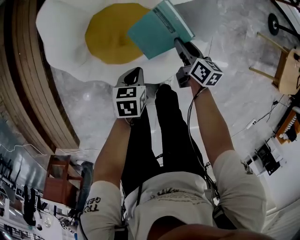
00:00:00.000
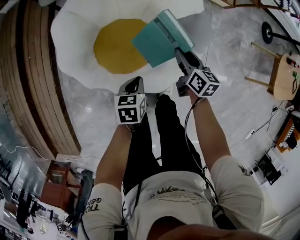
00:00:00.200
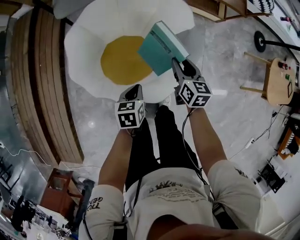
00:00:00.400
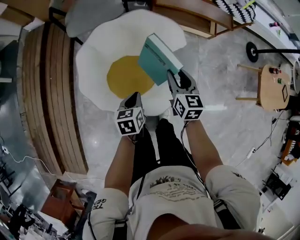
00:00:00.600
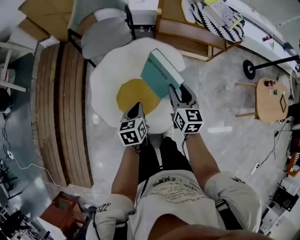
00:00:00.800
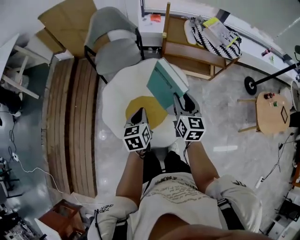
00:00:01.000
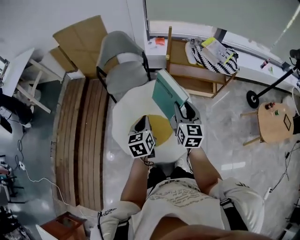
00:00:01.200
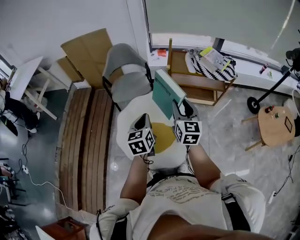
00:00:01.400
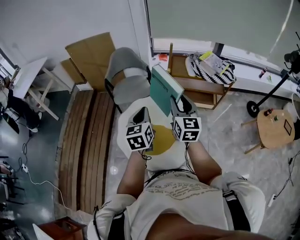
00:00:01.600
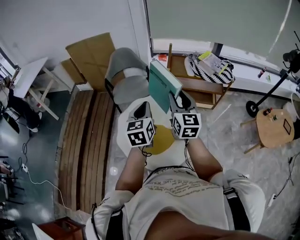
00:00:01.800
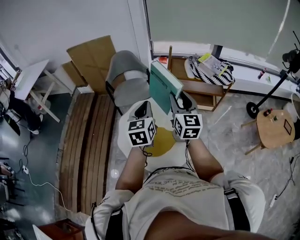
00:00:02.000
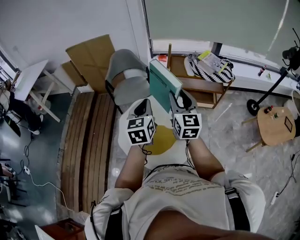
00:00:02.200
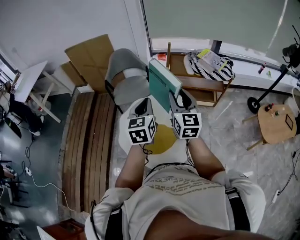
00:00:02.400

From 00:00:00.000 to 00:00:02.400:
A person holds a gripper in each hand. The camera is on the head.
From 00:00:00.000 to 00:00:01.200: Both grippers travel together upward, about 50 cm. The left gripper swivels about 40 degrees; the right gripper turns by about 40 degrees.
From 00:00:01.200 to 00:00:02.400: The two grippers go some 15 cm upward. The left gripper rotates about 20 degrees.

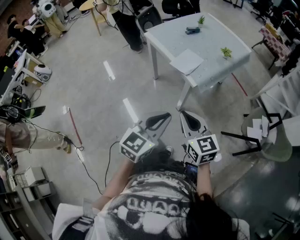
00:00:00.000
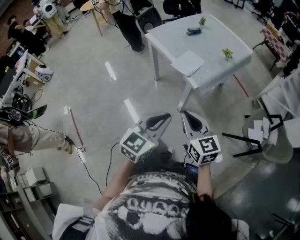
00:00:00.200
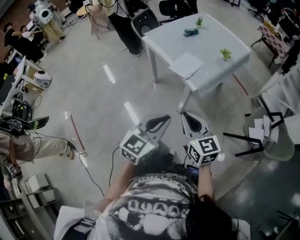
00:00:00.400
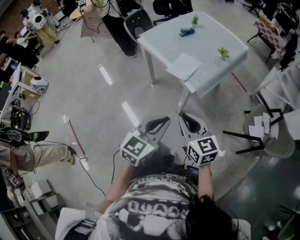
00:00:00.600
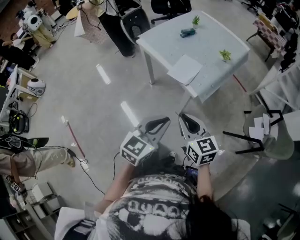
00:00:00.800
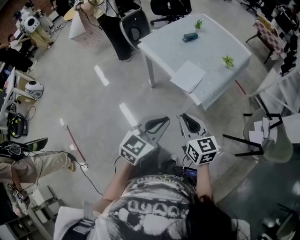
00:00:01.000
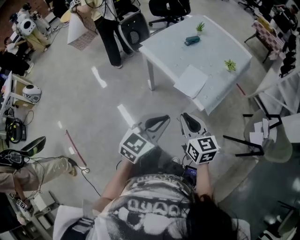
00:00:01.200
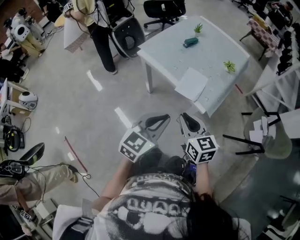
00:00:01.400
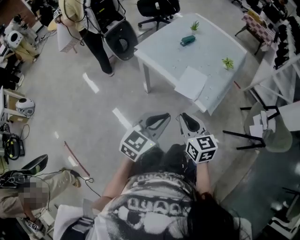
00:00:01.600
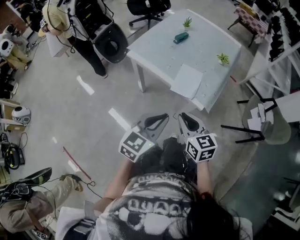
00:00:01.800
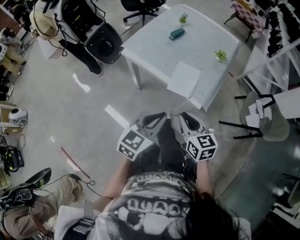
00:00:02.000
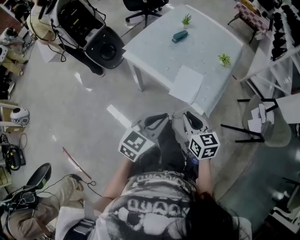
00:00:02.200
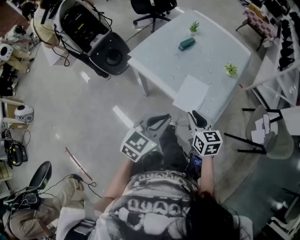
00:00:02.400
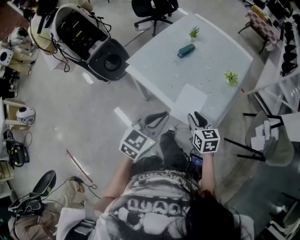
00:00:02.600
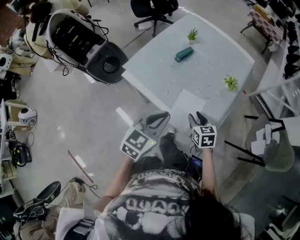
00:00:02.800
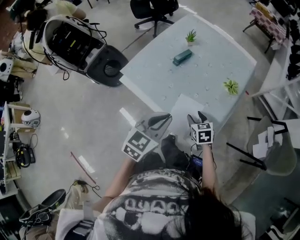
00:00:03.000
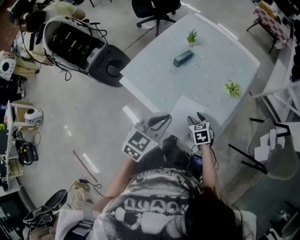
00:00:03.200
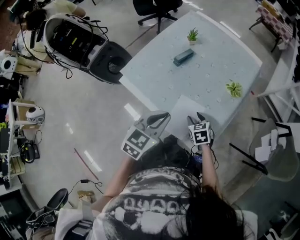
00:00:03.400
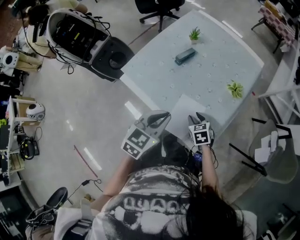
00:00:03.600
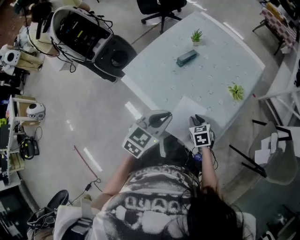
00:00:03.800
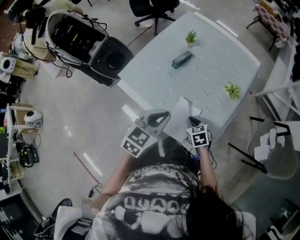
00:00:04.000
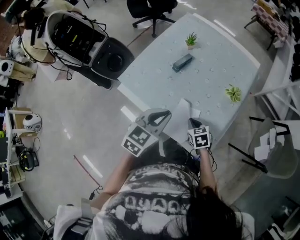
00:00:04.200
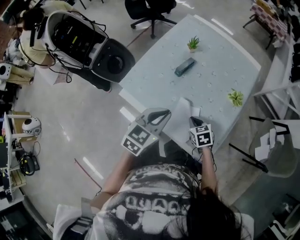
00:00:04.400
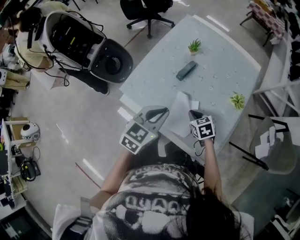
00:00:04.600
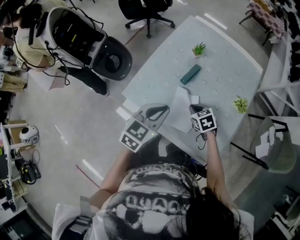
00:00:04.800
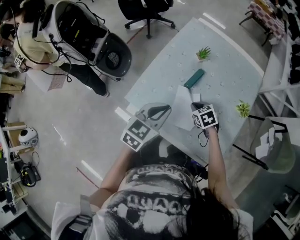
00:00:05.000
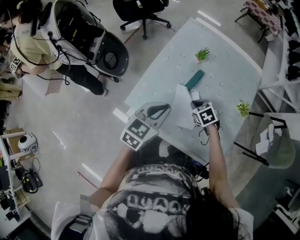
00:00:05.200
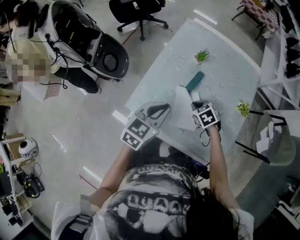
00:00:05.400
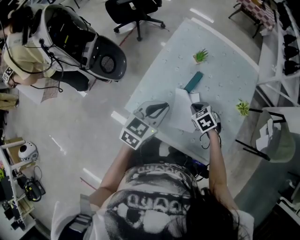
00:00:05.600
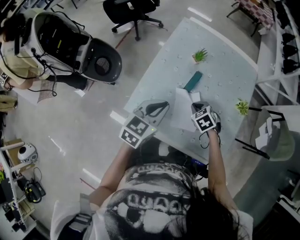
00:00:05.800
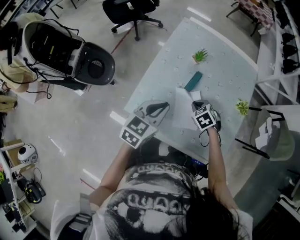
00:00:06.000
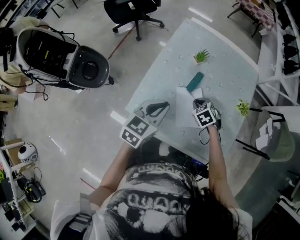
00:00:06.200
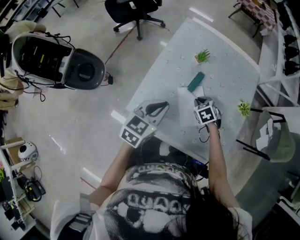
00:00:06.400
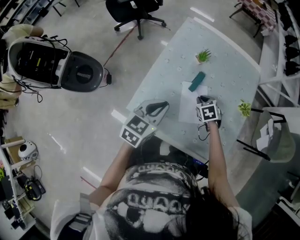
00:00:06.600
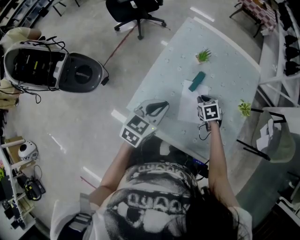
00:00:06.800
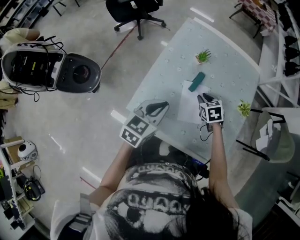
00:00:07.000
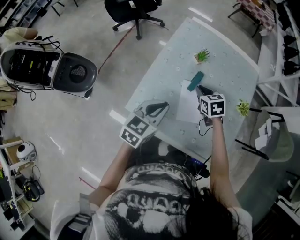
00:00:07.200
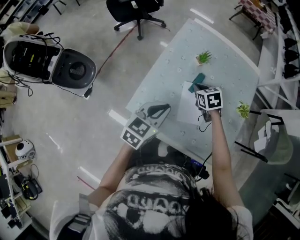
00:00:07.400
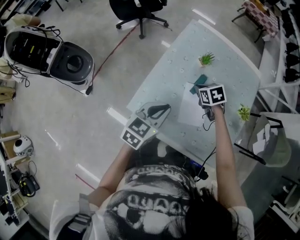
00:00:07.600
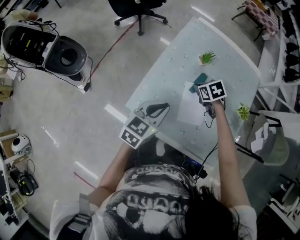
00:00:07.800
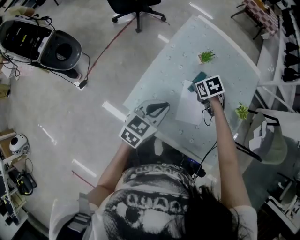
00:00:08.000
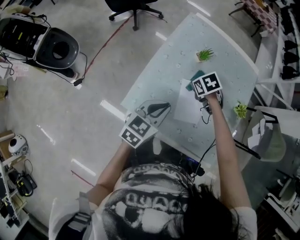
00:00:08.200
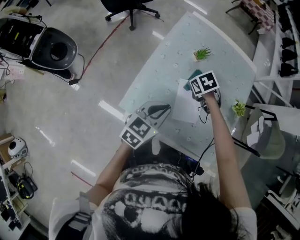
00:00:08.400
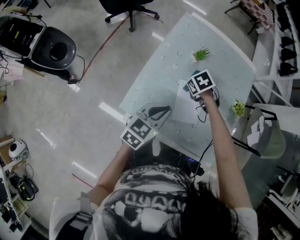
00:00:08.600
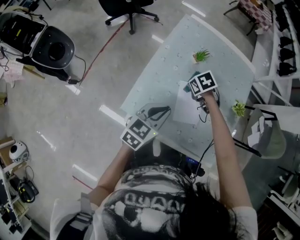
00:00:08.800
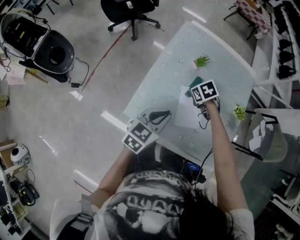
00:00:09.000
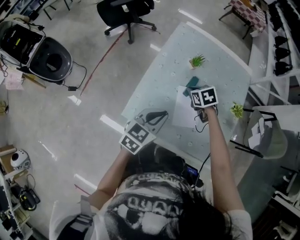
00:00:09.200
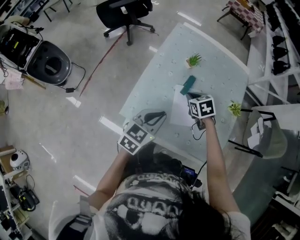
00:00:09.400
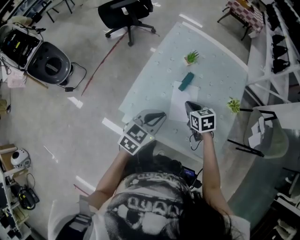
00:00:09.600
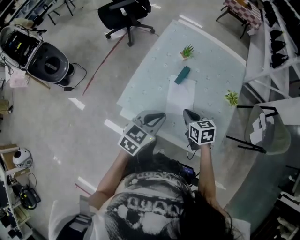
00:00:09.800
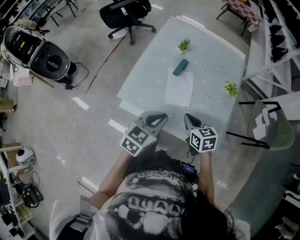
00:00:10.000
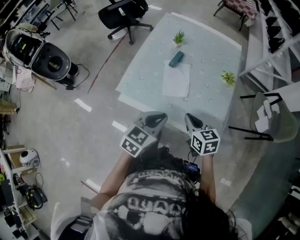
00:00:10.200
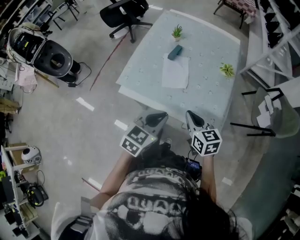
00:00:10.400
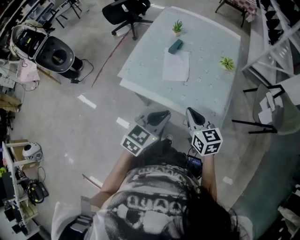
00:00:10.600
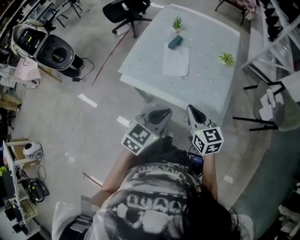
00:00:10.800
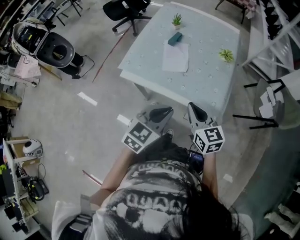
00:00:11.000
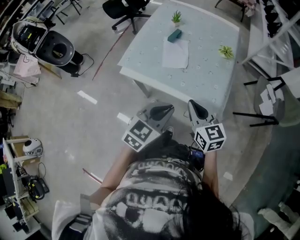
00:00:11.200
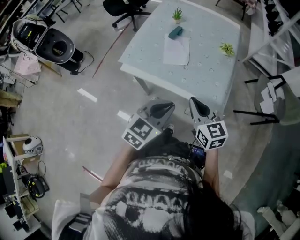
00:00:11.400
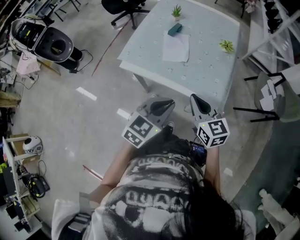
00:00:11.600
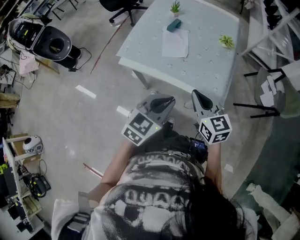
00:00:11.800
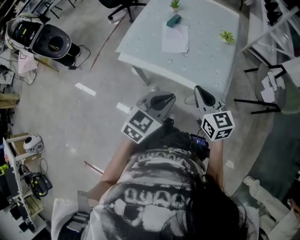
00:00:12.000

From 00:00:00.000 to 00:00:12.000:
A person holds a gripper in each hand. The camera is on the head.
From 00:00:00.000 to 00:00:01.600: Both grippers travel together forward and to the left, about 25 cm.
From 00:00:01.600 to 00:00:03.000: The left gripper is displaced forward by about 25 cm; the right gripper heads forward and downward, covering about 35 cm, turns by about 30 degrees, and opens.
From 00:00:03.000 to 00:00:04.400: The right gripper shifts by roughly 5 cm, and closes up. The left gripper shifts some 10 cm forward.
From 00:00:04.400 to 00:00:06.000: Both grippers move forward and to the left, roughly 20 cm.
From 00:00:06.000 to 00:00:07.600: The right gripper shifts roughly 10 cm forward.
From 00:00:07.600 to 00:00:09.000: There are only small adjustments of the grippers.
From 00:00:09.000 to 00:00:10.400: The left gripper is displaced backward and to the right by about 25 cm. Meanwhile the right gripper moves backward, approximately 35 cm, and points its fingers roughly 40 degrees further upward.
From 00:00:10.400 to 00:00:12.000: Both grippers move backward, approximately 10 cm.

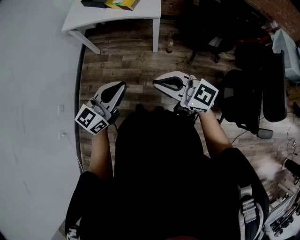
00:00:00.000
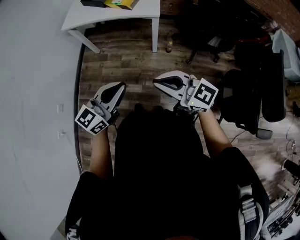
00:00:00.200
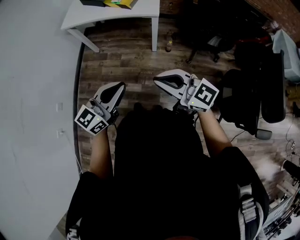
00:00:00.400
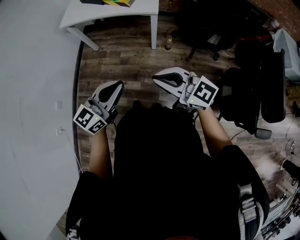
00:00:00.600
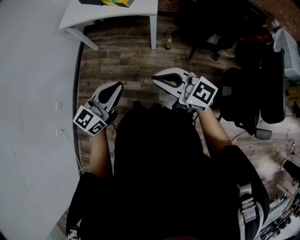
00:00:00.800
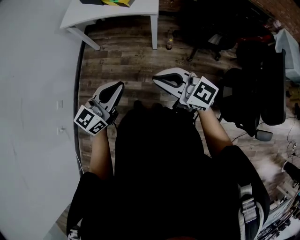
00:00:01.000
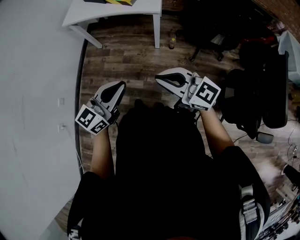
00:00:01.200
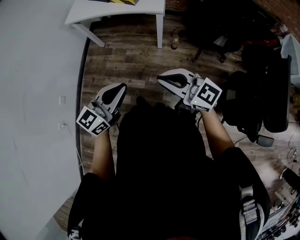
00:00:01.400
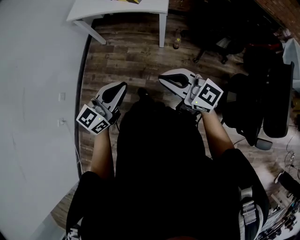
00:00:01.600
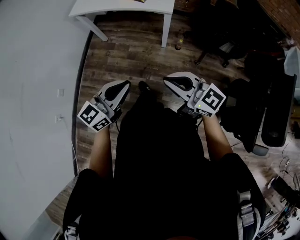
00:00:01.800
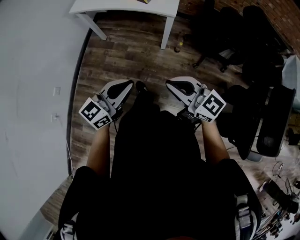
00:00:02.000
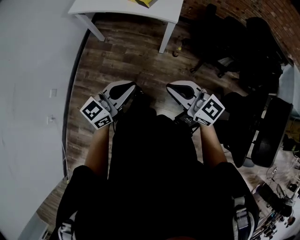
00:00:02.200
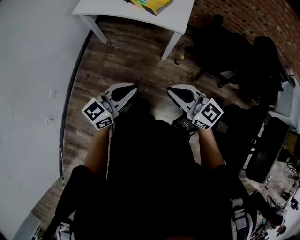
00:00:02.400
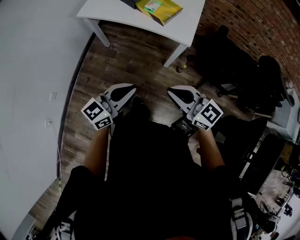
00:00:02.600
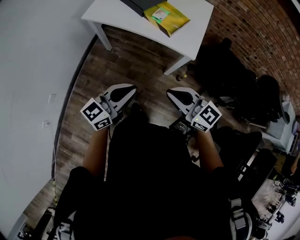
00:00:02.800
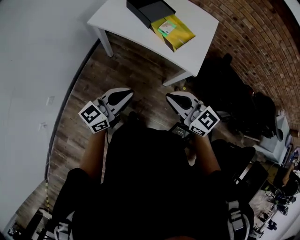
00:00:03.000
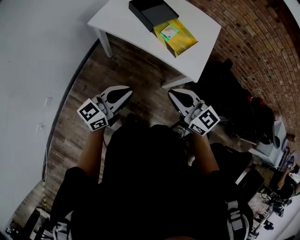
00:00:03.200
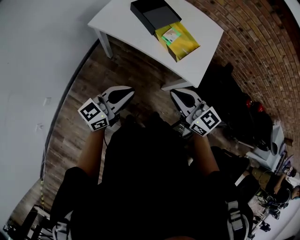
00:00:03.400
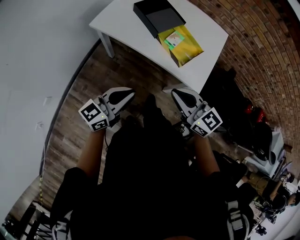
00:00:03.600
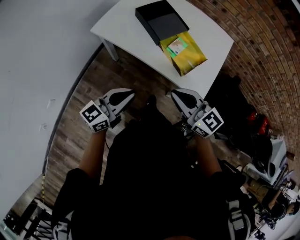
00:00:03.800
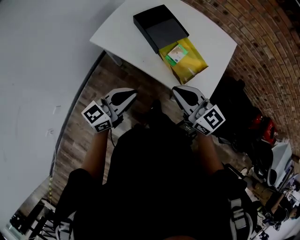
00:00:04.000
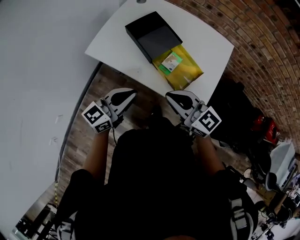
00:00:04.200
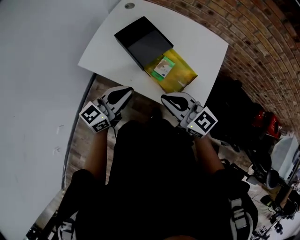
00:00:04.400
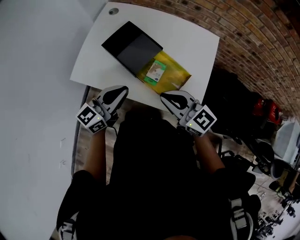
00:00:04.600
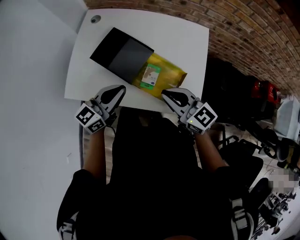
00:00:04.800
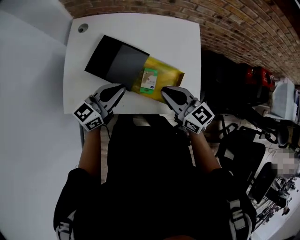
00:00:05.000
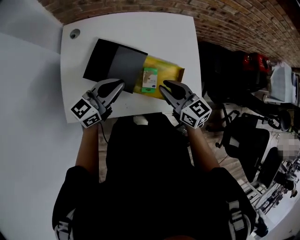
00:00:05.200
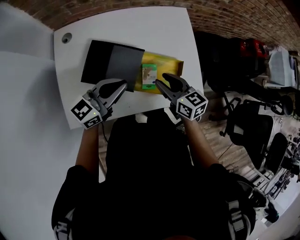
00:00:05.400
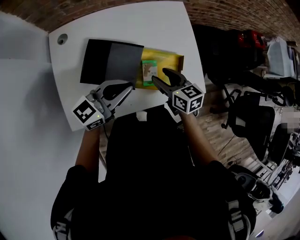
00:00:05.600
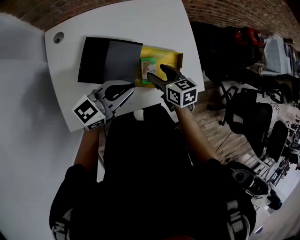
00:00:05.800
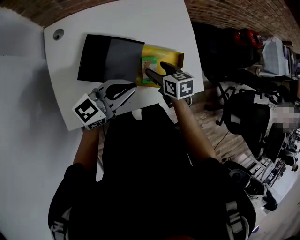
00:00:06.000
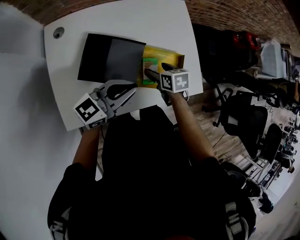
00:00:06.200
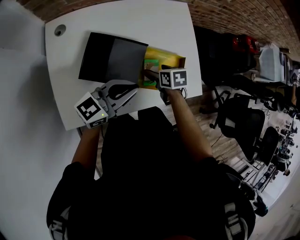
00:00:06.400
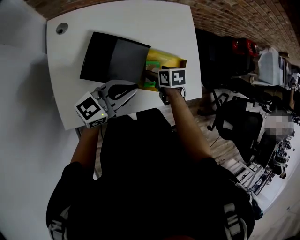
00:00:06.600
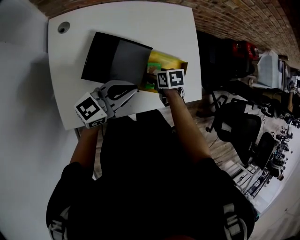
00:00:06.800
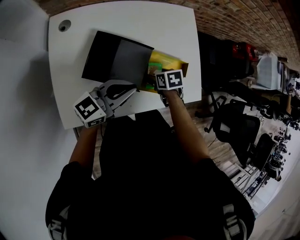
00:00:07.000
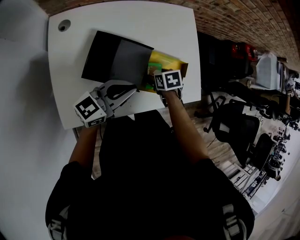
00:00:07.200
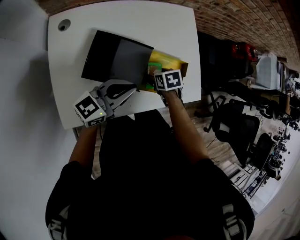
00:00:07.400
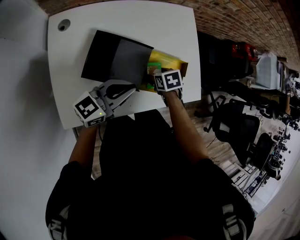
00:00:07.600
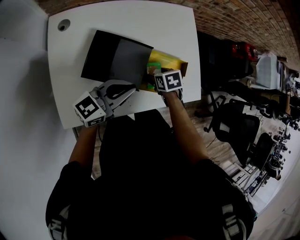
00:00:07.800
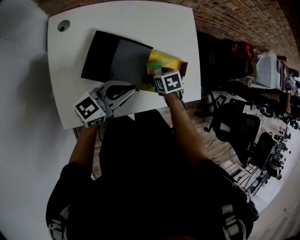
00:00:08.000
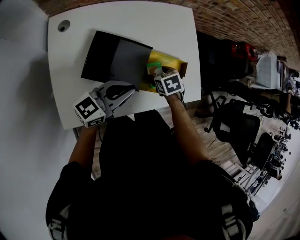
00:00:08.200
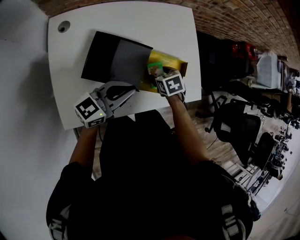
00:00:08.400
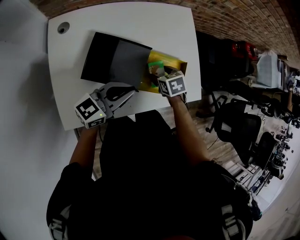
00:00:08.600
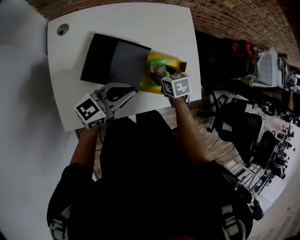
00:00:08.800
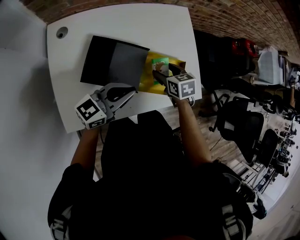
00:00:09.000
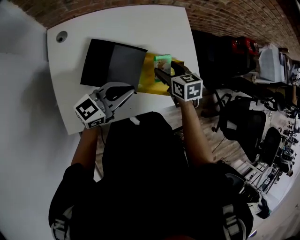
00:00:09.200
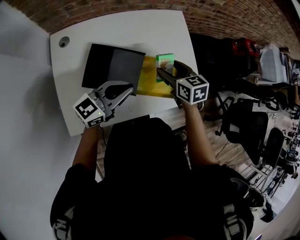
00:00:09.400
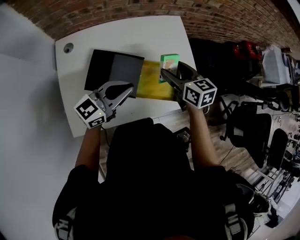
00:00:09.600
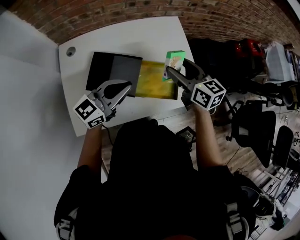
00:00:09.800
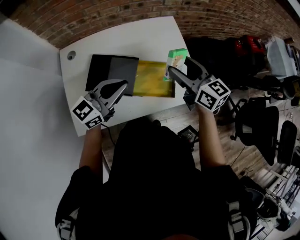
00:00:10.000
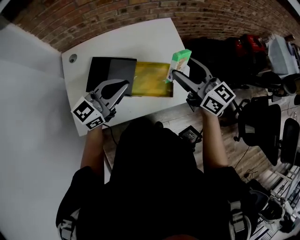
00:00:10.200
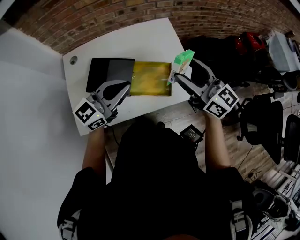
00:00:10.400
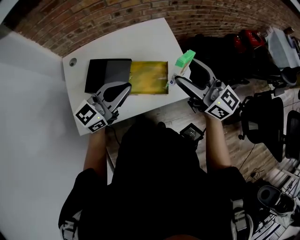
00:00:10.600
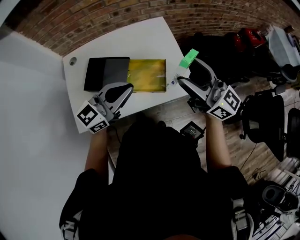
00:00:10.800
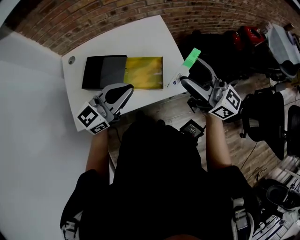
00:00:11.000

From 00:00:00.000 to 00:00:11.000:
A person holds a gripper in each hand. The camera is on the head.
From 00:00:00.000 to 00:00:01.600: The right gripper moves approximately 5 cm.
From 00:00:01.600 to 00:00:03.200: Both grippers move forward, some 35 cm.
From 00:00:03.200 to 00:00:04.800: Both grippers travel together forward, some 35 cm.
From 00:00:04.800 to 00:00:06.200: The right gripper is displaced downward by about 20 cm, tilts its fingers about 40 degrees downward, and opens up, while the left gripper turns by about 40 degrees.
From 00:00:06.200 to 00:00:07.800: The grippers move only a little.
From 00:00:07.800 to 00:00:09.400: The right gripper heads upward, covering about 15 cm, and tilts its fingers roughly 30 degrees upward.
From 00:00:09.400 to 00:00:11.000: The right gripper shifts roughly 35 cm upward, to the right and backward, and tips its fingers upward by roughly 60 degrees. The left gripper shifts approximately 20 cm to the right, upward and backward.
